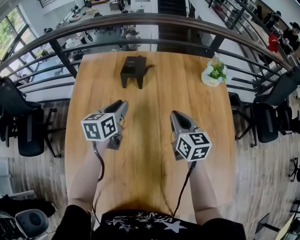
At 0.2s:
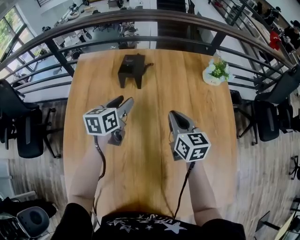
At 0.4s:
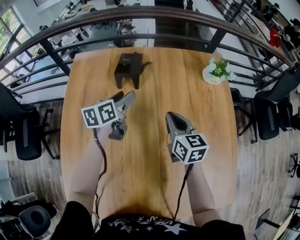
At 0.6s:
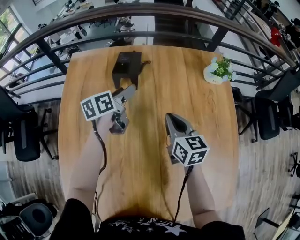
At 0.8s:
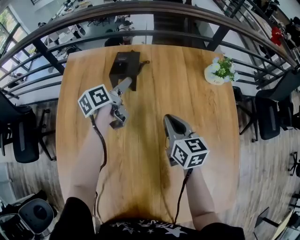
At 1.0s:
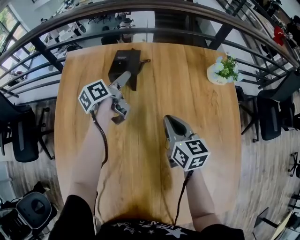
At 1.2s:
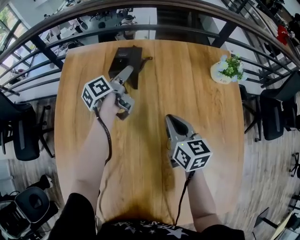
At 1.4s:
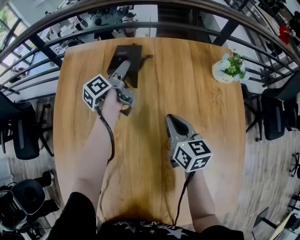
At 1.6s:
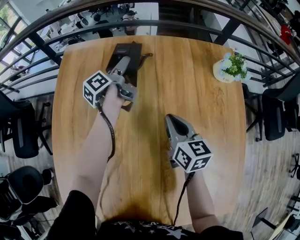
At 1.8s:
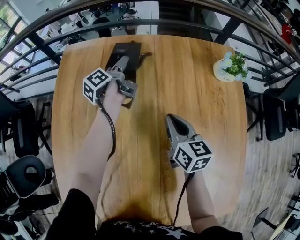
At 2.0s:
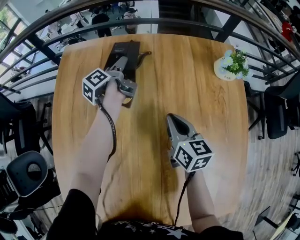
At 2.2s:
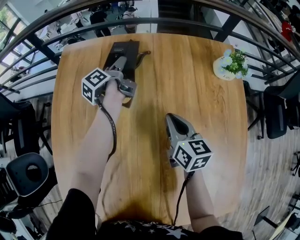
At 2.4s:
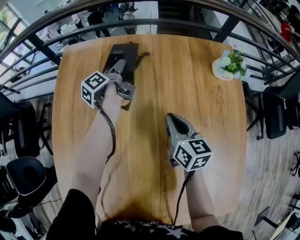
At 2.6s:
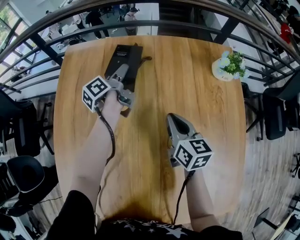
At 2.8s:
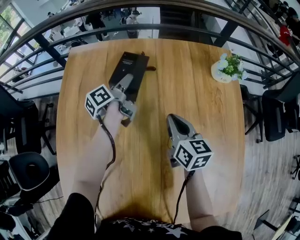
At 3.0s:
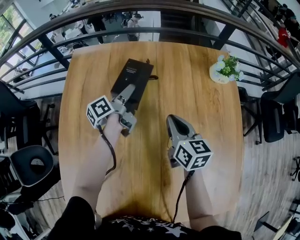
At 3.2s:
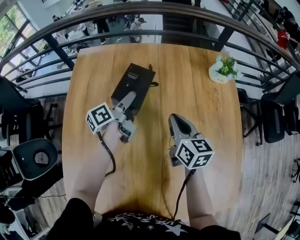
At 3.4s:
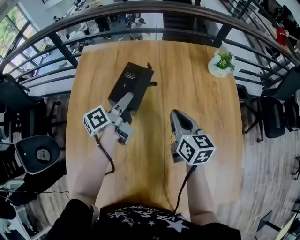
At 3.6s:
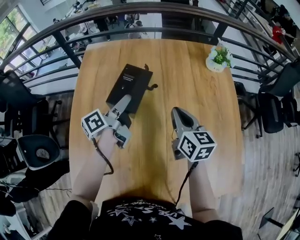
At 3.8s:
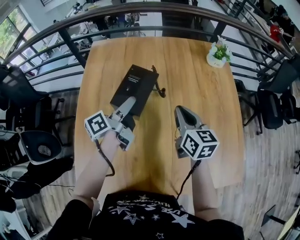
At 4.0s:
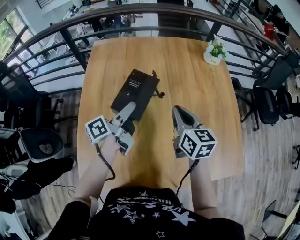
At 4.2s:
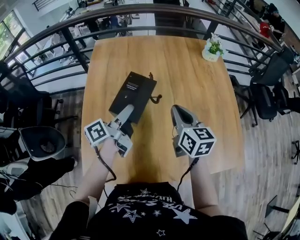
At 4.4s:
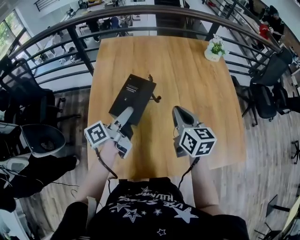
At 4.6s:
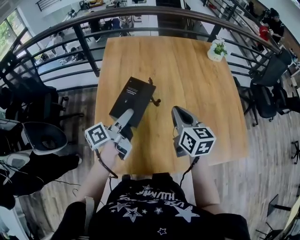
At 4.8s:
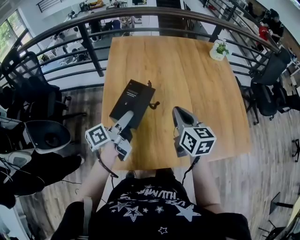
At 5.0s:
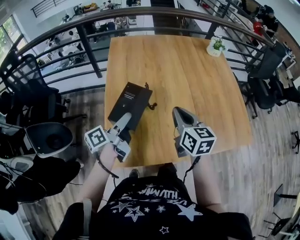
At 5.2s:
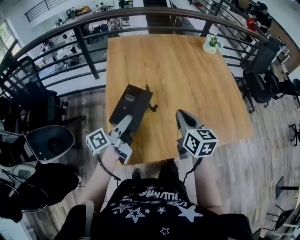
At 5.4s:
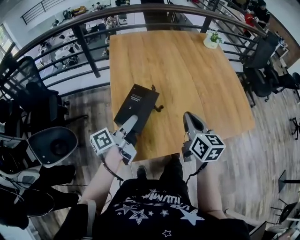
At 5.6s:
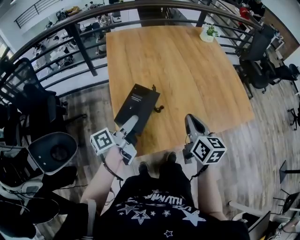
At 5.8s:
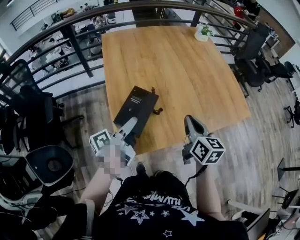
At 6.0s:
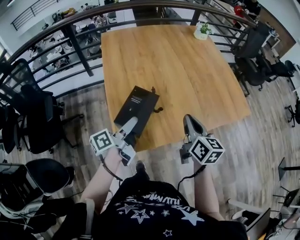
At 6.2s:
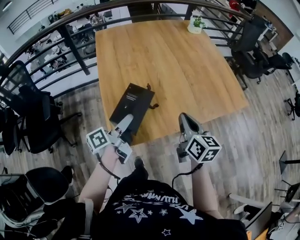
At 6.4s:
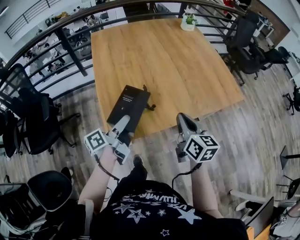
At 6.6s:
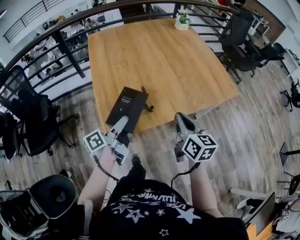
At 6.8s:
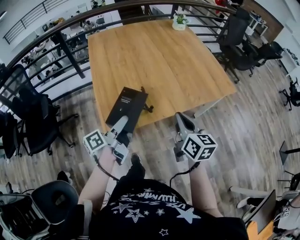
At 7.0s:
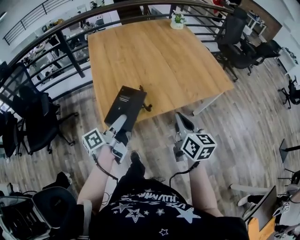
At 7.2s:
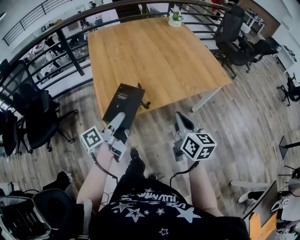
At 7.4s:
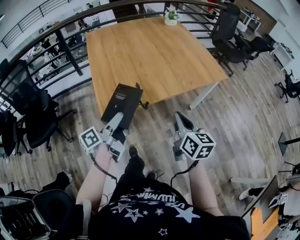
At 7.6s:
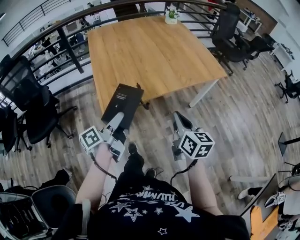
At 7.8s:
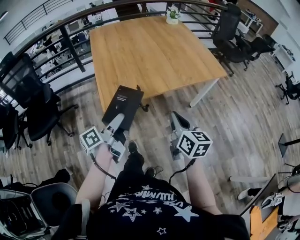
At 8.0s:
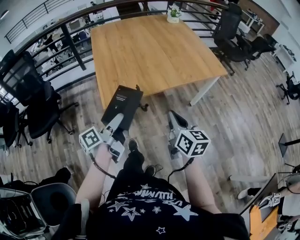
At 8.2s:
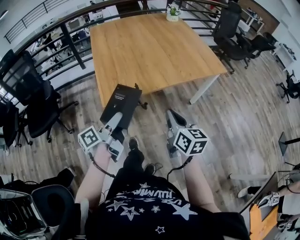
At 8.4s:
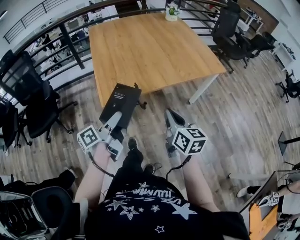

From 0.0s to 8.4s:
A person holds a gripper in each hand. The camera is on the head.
From 0.0s to 1.4s: The left gripper goes some 20 cm forward and downward, twists about 50 degrees counterclockwise, seen from behind, and opens its fingers. The right gripper goes about 10 cm downward and forward.
From 1.4s to 2.8s: The left gripper travels backward by approximately 5 cm, and closes.
From 2.8s to 4.2s: The left gripper shifts approximately 40 cm backward, while the right gripper moves backward and upward, some 25 cm.
From 4.2s to 5.6s: Both grippers move backward and to the left, roughly 25 cm.
From 5.6s to 7.0s: Both grippers travel together backward and to the right, approximately 20 cm.
From 7.0s to 8.4s: Both grippers move backward, approximately 15 cm.

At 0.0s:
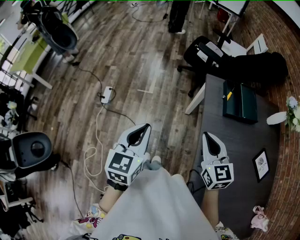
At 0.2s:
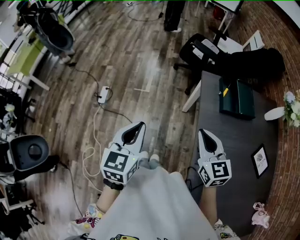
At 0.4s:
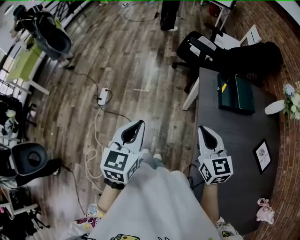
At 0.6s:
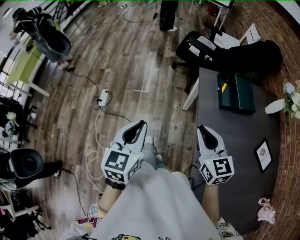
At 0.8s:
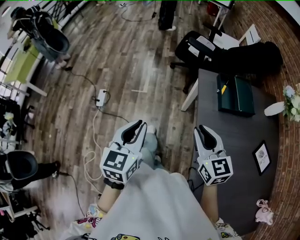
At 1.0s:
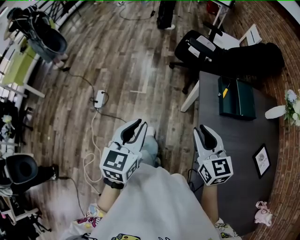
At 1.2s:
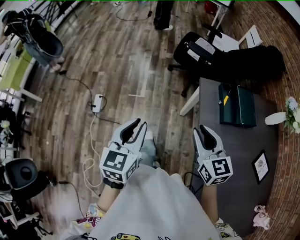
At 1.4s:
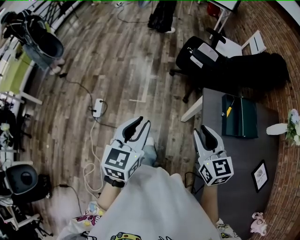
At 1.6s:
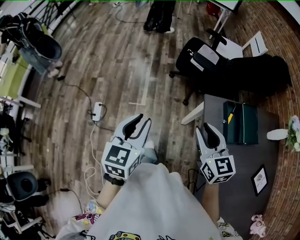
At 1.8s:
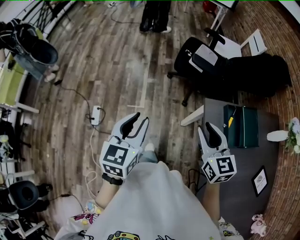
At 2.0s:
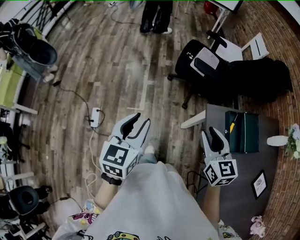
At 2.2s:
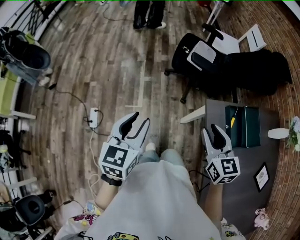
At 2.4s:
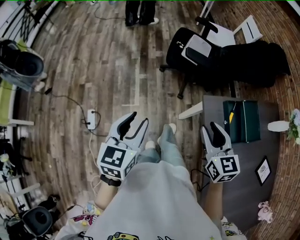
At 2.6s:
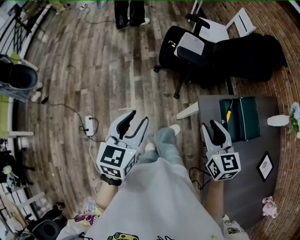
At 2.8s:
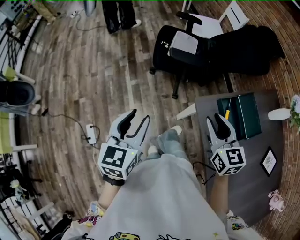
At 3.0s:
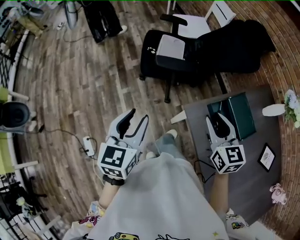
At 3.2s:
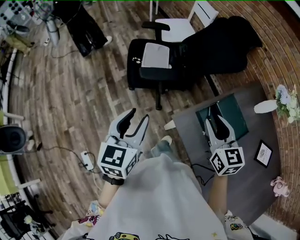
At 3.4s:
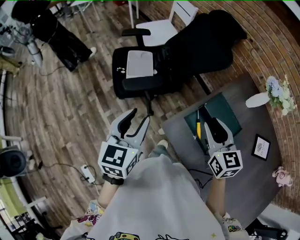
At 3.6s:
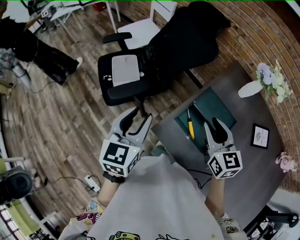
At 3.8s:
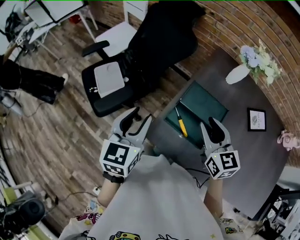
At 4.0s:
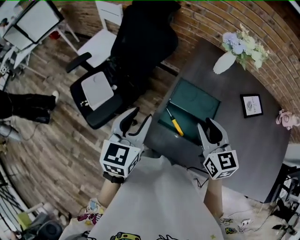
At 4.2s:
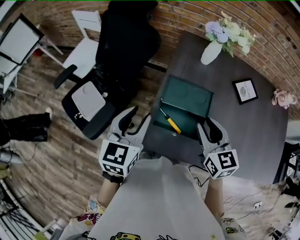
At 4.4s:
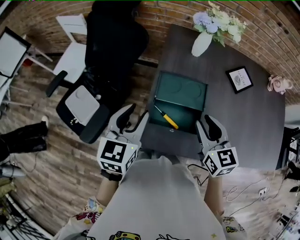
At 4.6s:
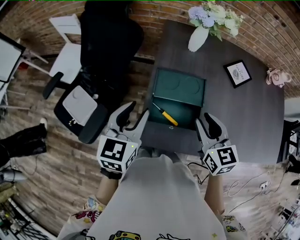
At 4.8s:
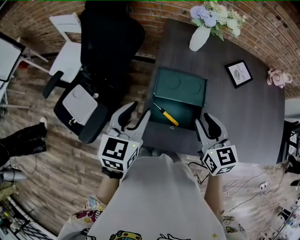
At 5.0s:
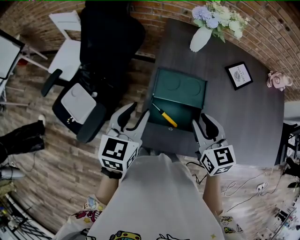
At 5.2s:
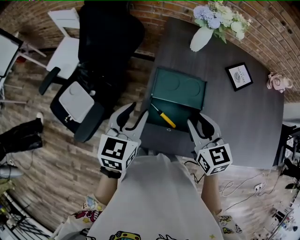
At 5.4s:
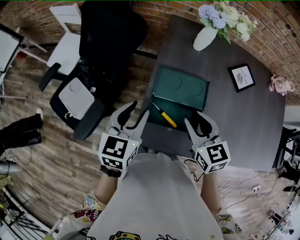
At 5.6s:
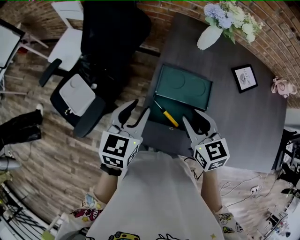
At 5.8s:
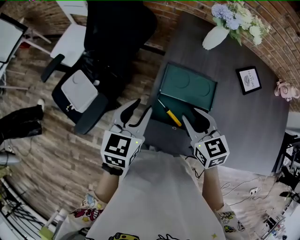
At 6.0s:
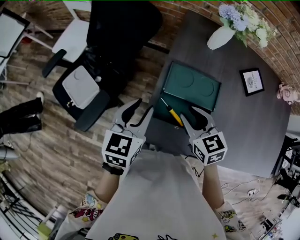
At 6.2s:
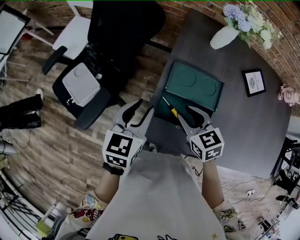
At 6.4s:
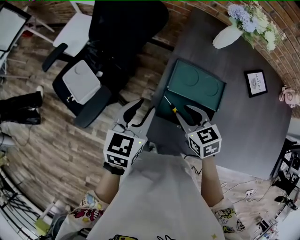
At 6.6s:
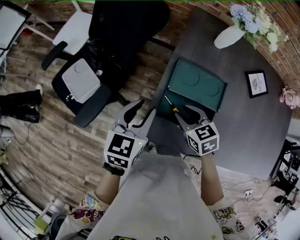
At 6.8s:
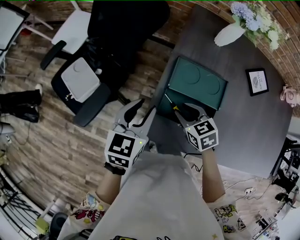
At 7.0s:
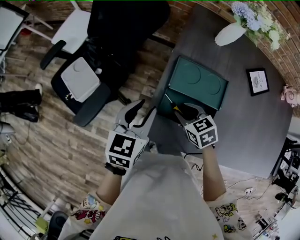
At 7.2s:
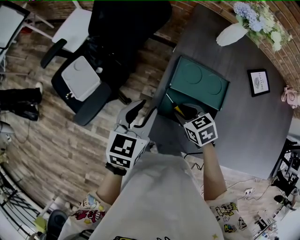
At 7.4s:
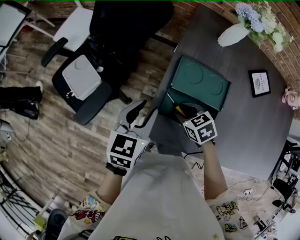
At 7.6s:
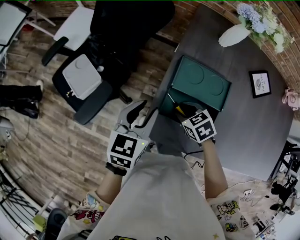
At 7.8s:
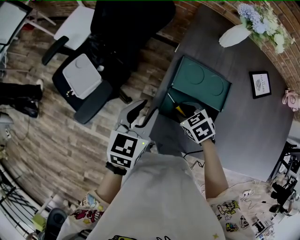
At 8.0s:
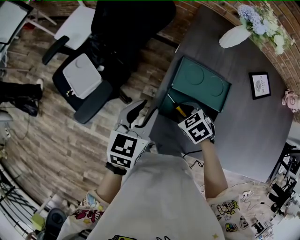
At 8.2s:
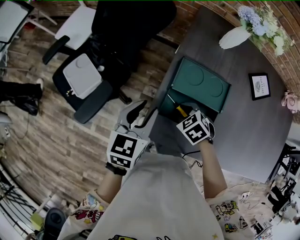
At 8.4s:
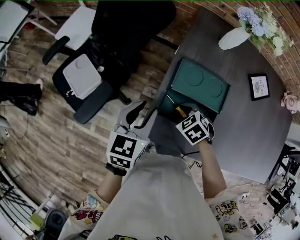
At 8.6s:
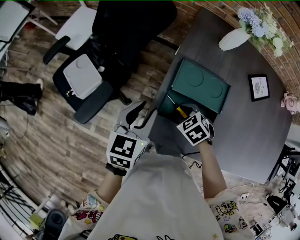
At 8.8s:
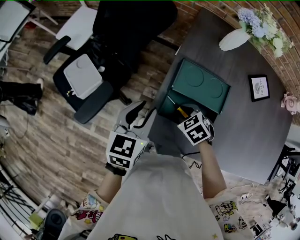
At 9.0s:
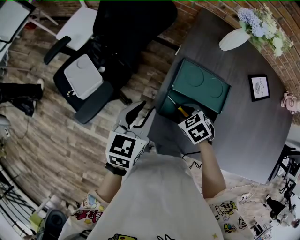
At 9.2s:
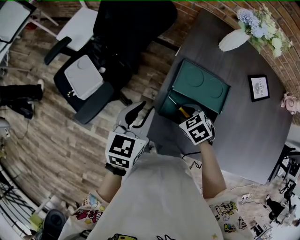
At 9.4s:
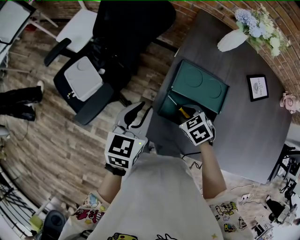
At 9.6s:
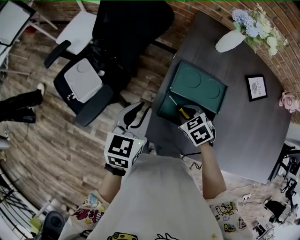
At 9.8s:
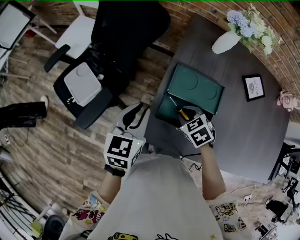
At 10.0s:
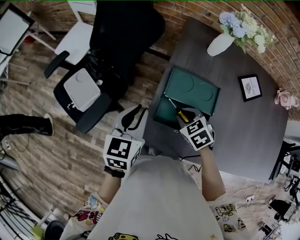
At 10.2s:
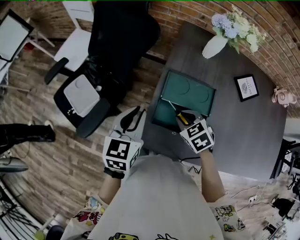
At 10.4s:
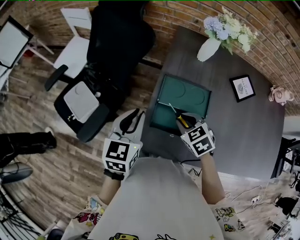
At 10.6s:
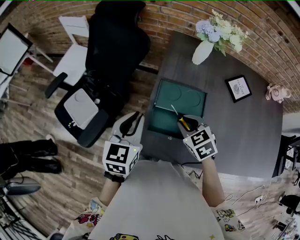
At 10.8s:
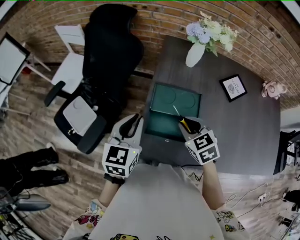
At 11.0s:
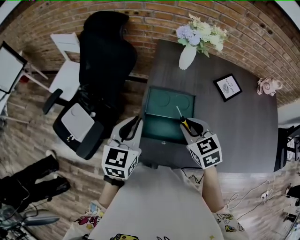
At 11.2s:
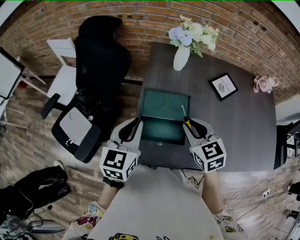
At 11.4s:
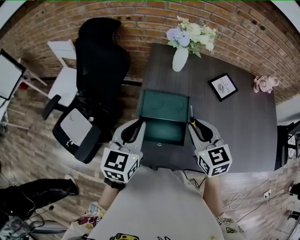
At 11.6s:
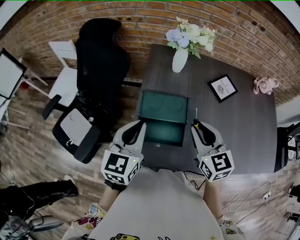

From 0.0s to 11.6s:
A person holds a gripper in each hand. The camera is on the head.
From 0.0s to 1.4s: The two grippers go roughly 15 cm forward. The right gripper opens up.
From 1.4s to 2.8s: The two grippers go about 20 cm forward. The right gripper rotates some 20 degrees.
From 2.8s to 4.4s: The left gripper shifts by about 40 cm, and turns by some 70 degrees, while the right gripper shifts by roughly 20 cm, and changes its angle by roughly 60 degrees.
From 4.4s to 5.8s: The left gripper shifts approximately 5 cm downward. The right gripper goes about 10 cm to the left and downward.
From 5.8s to 7.2s: The right gripper travels downward by some 15 cm, and turns by some 30 degrees.
From 8.8s to 10.2s: The right gripper moves upward, approximately 5 cm.
From 10.2s to 11.6s: The right gripper moves upward and to the right, about 20 cm, and tilts its fingers approximately 40 degrees upward, while the left gripper moves to the right and upward, about 10 cm.

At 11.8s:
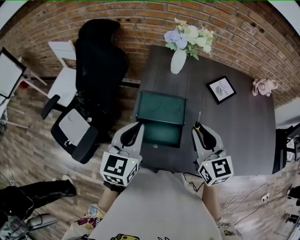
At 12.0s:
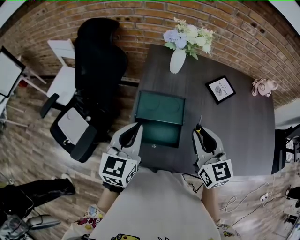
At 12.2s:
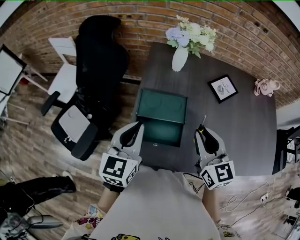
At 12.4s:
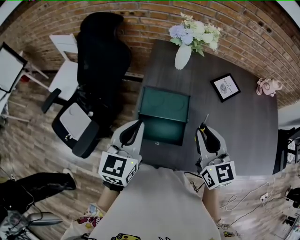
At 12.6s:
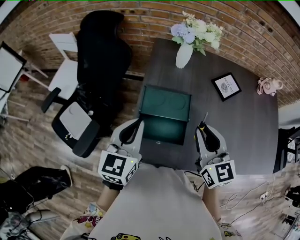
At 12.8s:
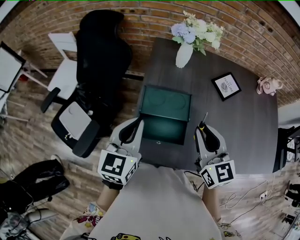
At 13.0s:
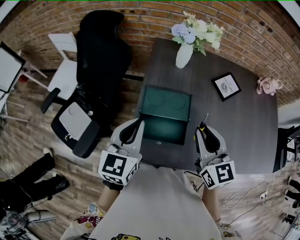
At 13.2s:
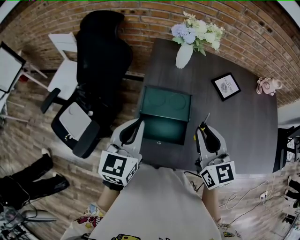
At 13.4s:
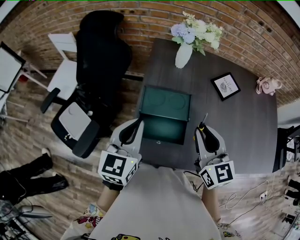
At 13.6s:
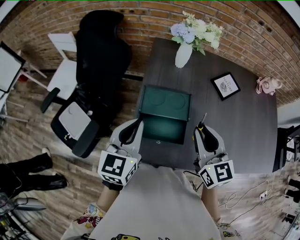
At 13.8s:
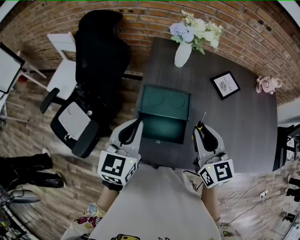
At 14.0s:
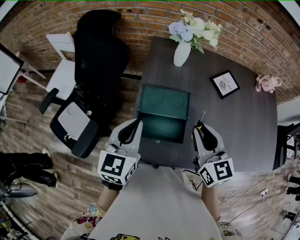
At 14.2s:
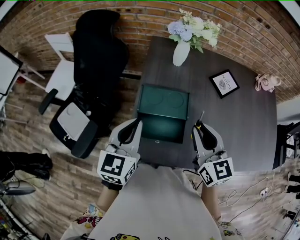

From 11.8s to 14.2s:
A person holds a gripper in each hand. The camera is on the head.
From 11.8s to 13.0s: The grippers move only a little.
From 13.0s to 14.2s: Both grippers stay about where they are.

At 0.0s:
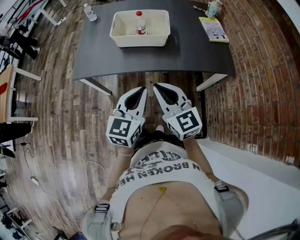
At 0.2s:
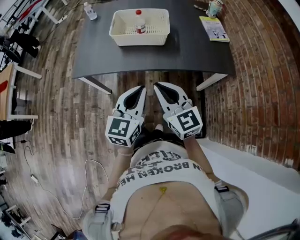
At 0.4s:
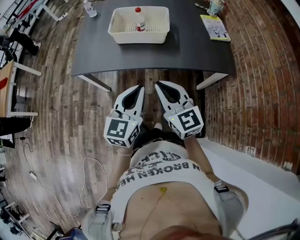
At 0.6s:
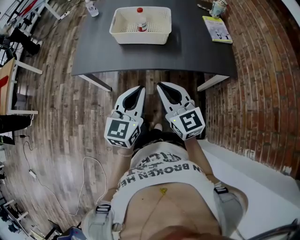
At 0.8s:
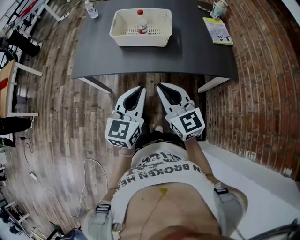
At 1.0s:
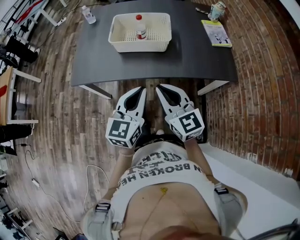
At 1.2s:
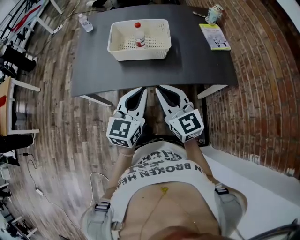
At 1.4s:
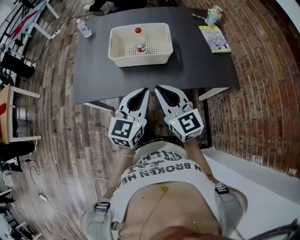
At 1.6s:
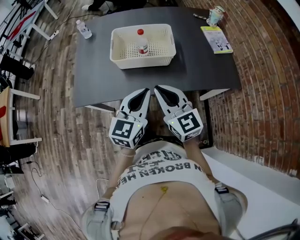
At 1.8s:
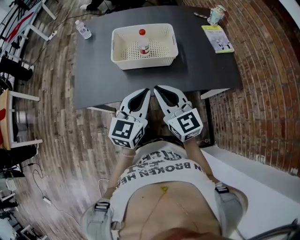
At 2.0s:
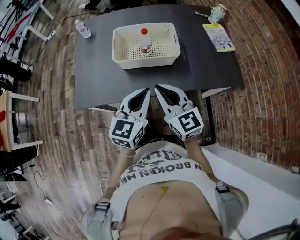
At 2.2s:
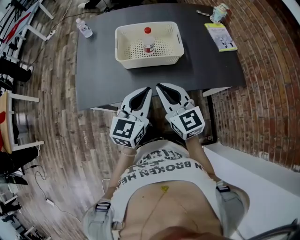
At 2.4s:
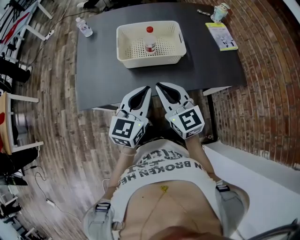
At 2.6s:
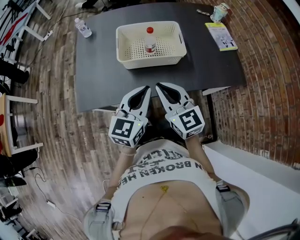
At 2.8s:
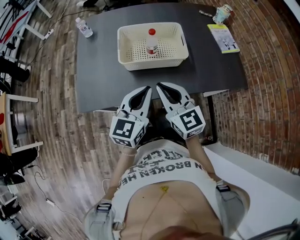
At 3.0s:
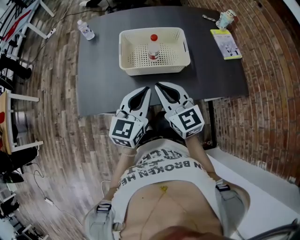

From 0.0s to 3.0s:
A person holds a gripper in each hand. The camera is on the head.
From 0.0s to 1.6s: Both grippers travel together forward, approximately 15 cm.
From 1.6s to 3.0s: The two grippers go approximately 10 cm forward and to the left.
